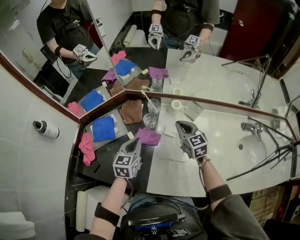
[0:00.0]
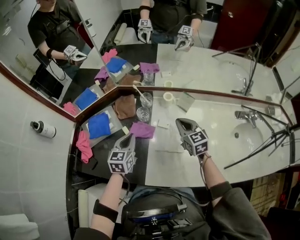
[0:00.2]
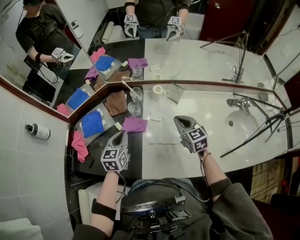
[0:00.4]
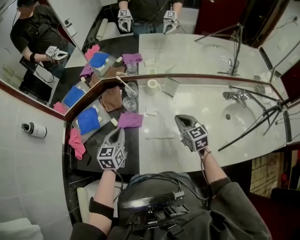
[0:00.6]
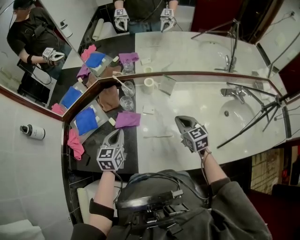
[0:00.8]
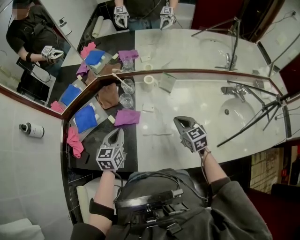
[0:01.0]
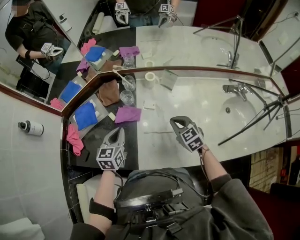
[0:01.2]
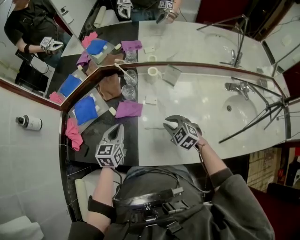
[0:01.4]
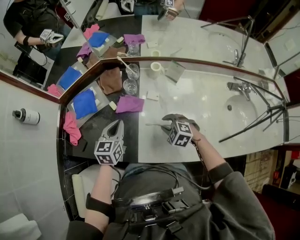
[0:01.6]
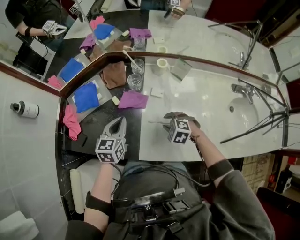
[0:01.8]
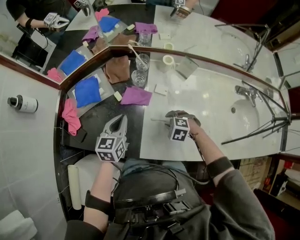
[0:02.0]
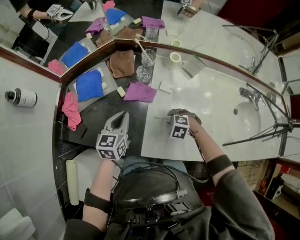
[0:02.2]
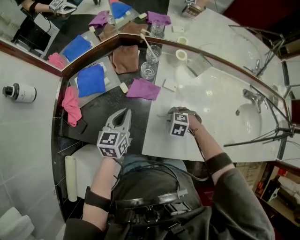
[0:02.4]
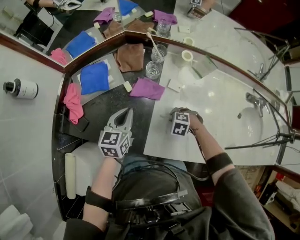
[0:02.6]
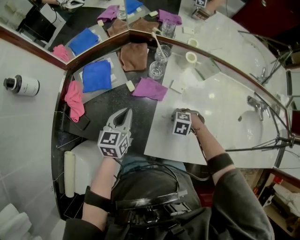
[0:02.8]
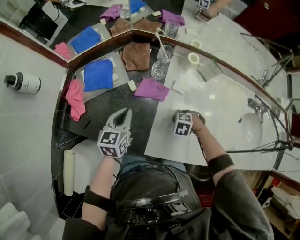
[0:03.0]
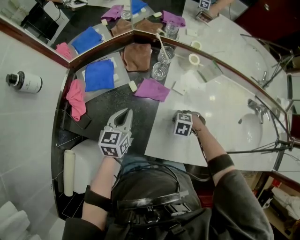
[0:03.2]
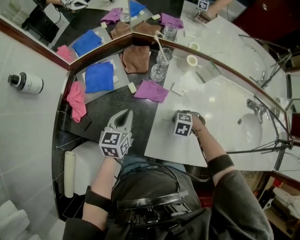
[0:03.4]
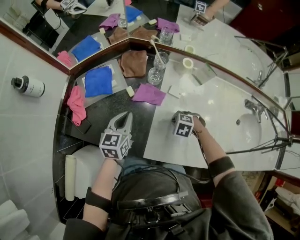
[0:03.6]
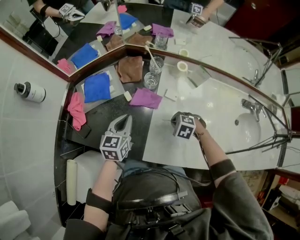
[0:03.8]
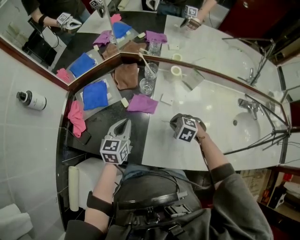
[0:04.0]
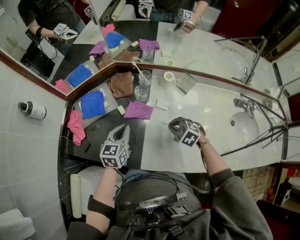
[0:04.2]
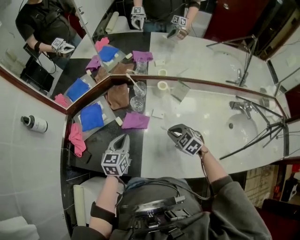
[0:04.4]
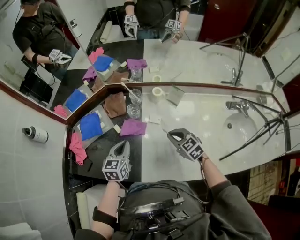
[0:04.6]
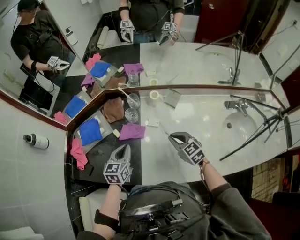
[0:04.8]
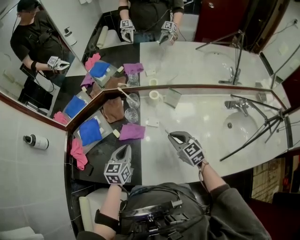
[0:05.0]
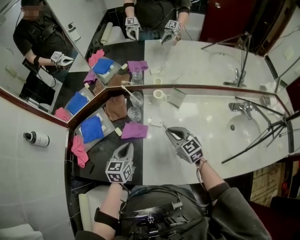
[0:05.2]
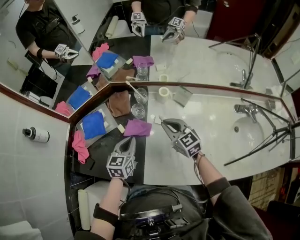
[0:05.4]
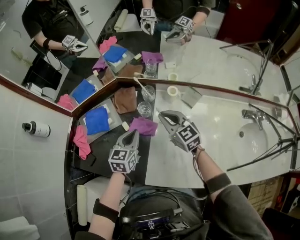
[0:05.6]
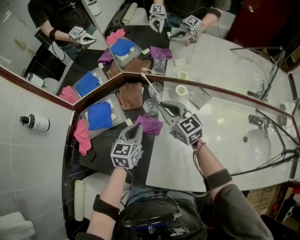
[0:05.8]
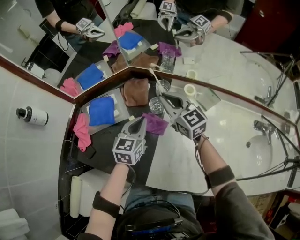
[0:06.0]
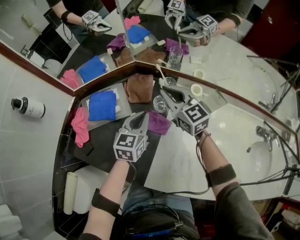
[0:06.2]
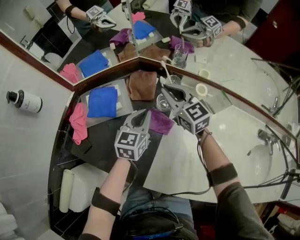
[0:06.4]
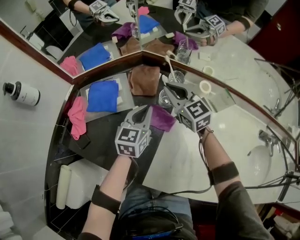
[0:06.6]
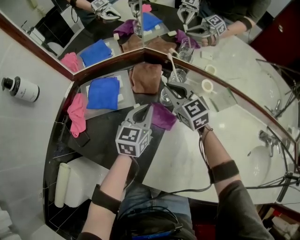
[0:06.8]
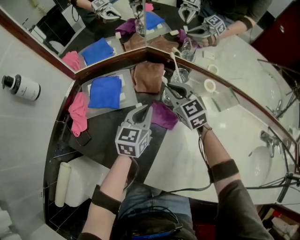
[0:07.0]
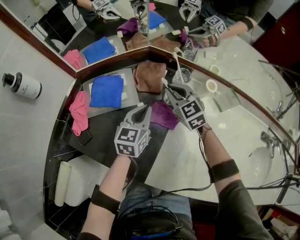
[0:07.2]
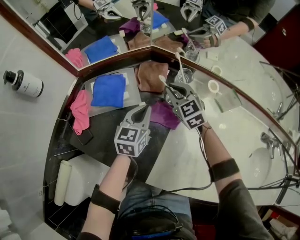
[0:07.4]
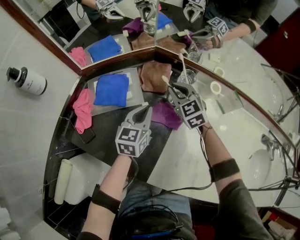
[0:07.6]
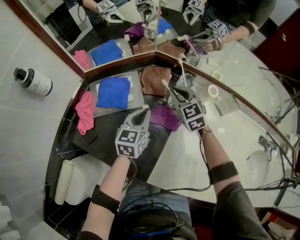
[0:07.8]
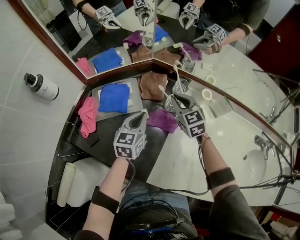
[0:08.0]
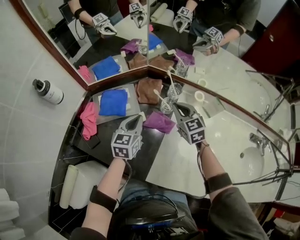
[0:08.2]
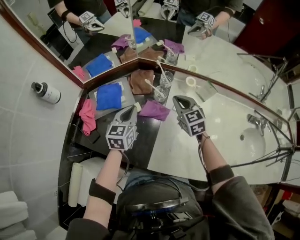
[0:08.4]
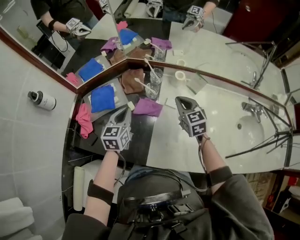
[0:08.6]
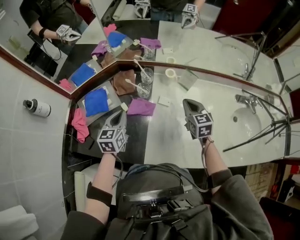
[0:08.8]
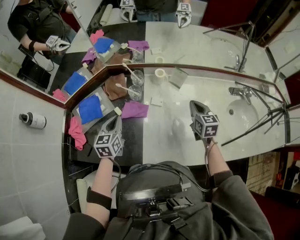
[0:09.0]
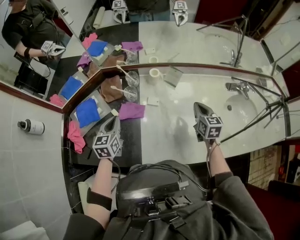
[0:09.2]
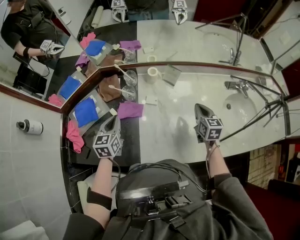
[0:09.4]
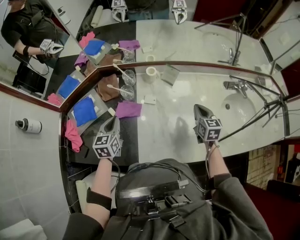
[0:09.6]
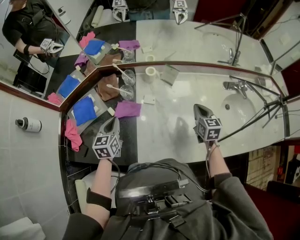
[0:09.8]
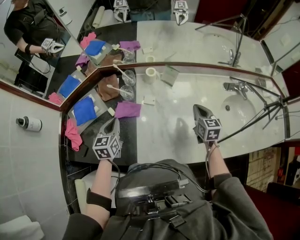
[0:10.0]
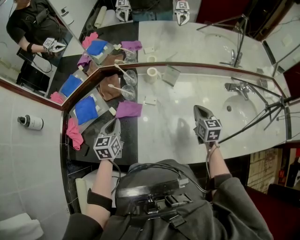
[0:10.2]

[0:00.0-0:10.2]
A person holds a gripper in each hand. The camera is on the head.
0:00.0 to 0:01.4: The right gripper moves backward and downward, some 20 cm, and swivels about 30 degrees, while the left gripper goes roughly 5 cm backward.
0:01.4 to 0:03.0: The right gripper shifts about 15 cm downward, and tilts its fingers some 30 degrees downward. Meanwhile the left gripper moves about 10 cm.
0:03.0 to 0:04.4: The left gripper shifts by about 10 cm, while the right gripper is displaced upward by roughly 15 cm, and tilts its fingers roughly 30 degrees upward.
0:04.4 to 0:05.8: The left gripper heads forward, covering some 10 cm. The right gripper moves forward and upward, about 20 cm, and angles its fingers upward, by about 30 degrees.
0:05.8 to 0:07.2: The left gripper moves downward, roughly 5 cm; the right gripper is displaced downward, to the left and forward by some 15 cm, and swivels about 20 degrees.
0:07.2 to 0:08.8: The right gripper shifts about 30 cm to the right, backward and upward, and swivels about 40 degrees. The left gripper shifts roughly 10 cm upward and backward.
0:08.8 to 0:10.2: The left gripper ends up roughly 5 cm from where it was. Meanwhile the right gripper goes about 15 cm to the right.

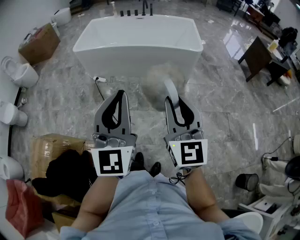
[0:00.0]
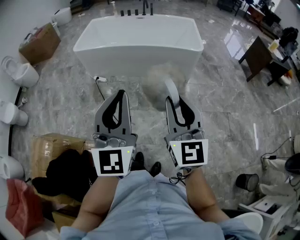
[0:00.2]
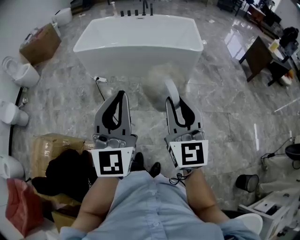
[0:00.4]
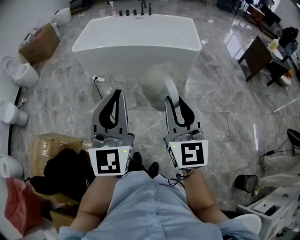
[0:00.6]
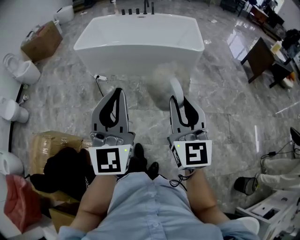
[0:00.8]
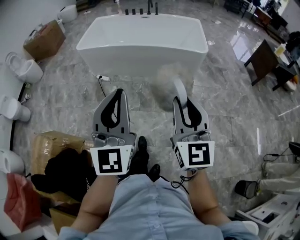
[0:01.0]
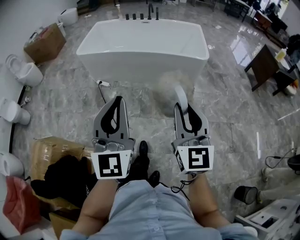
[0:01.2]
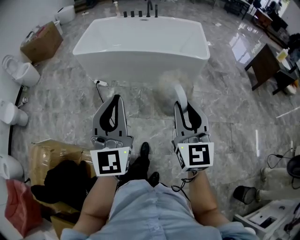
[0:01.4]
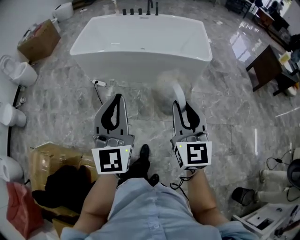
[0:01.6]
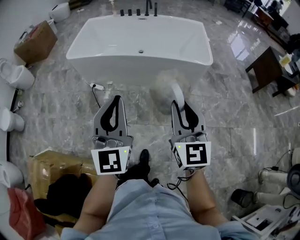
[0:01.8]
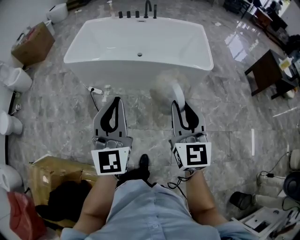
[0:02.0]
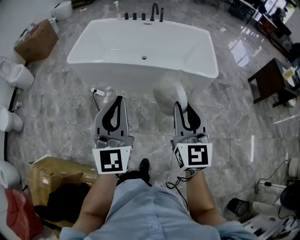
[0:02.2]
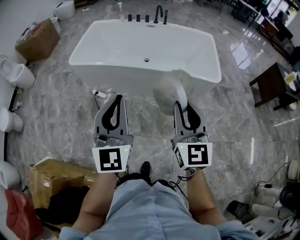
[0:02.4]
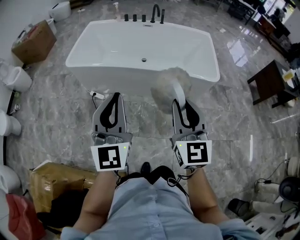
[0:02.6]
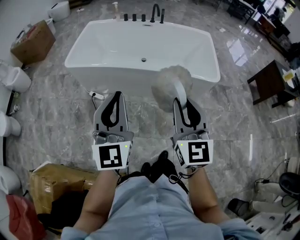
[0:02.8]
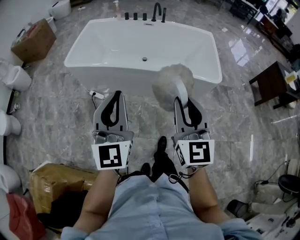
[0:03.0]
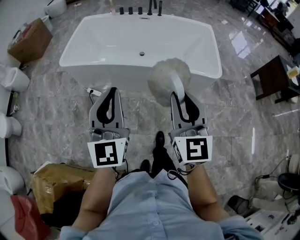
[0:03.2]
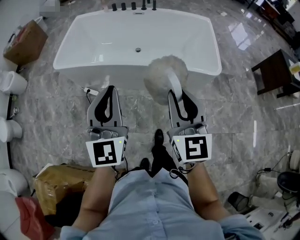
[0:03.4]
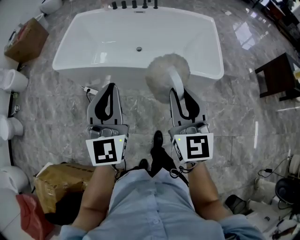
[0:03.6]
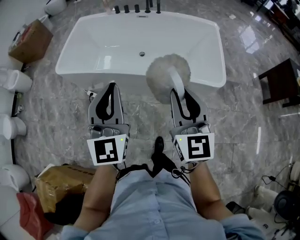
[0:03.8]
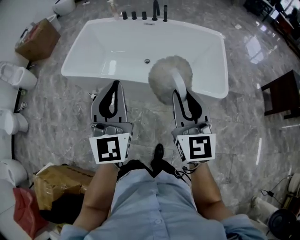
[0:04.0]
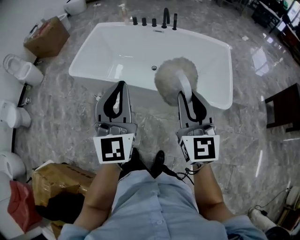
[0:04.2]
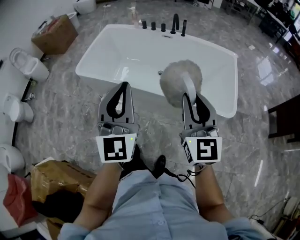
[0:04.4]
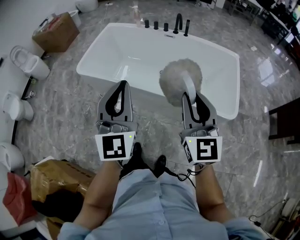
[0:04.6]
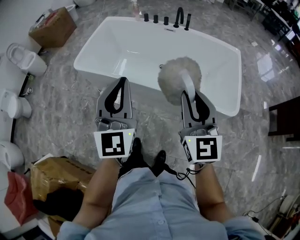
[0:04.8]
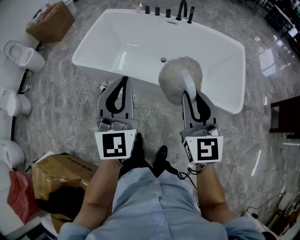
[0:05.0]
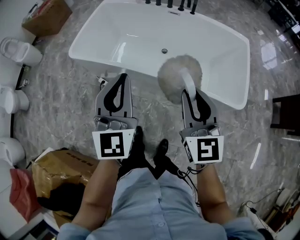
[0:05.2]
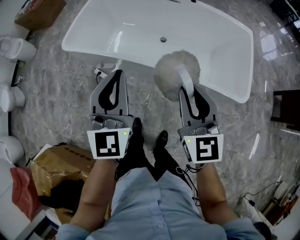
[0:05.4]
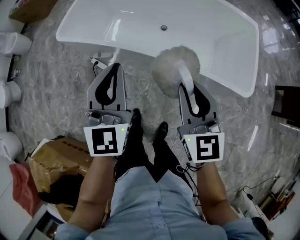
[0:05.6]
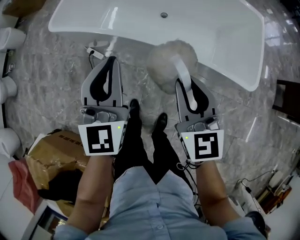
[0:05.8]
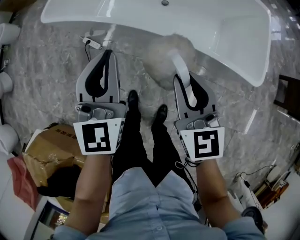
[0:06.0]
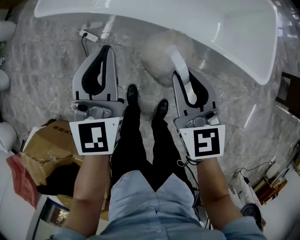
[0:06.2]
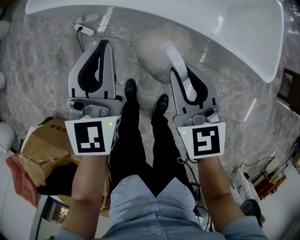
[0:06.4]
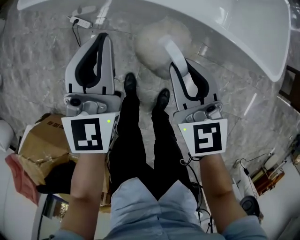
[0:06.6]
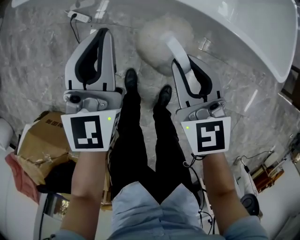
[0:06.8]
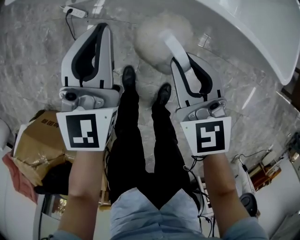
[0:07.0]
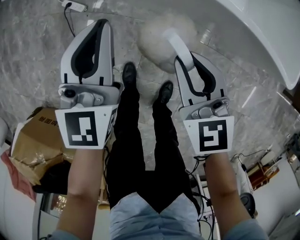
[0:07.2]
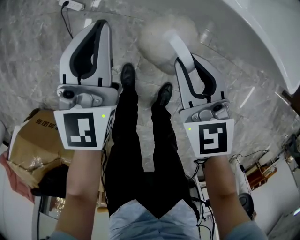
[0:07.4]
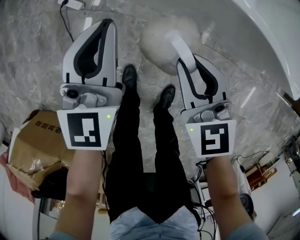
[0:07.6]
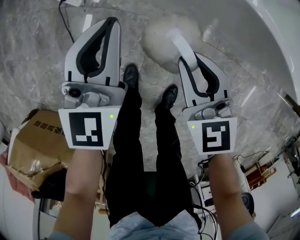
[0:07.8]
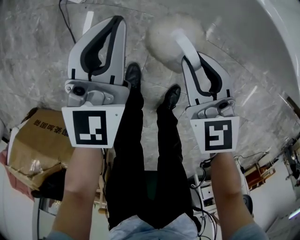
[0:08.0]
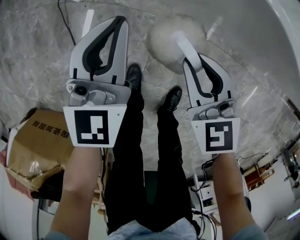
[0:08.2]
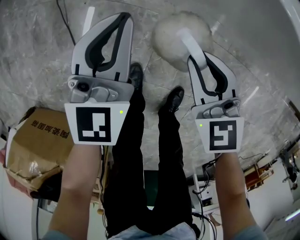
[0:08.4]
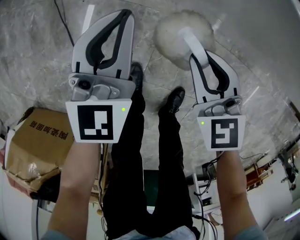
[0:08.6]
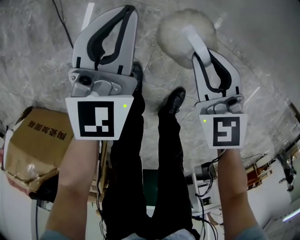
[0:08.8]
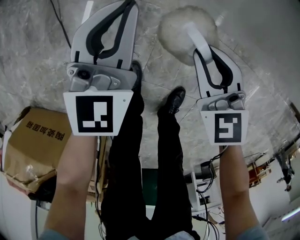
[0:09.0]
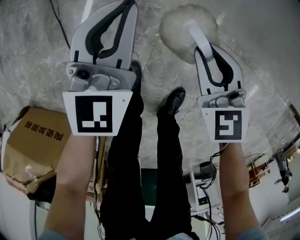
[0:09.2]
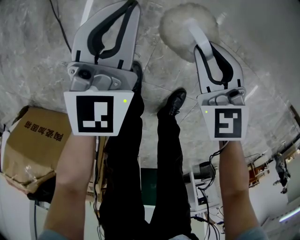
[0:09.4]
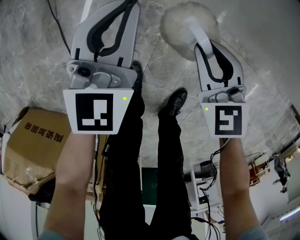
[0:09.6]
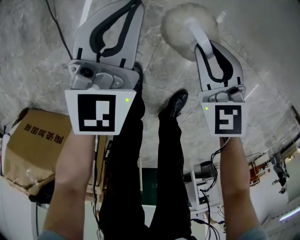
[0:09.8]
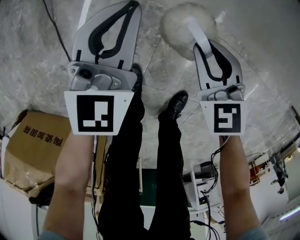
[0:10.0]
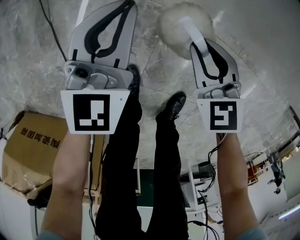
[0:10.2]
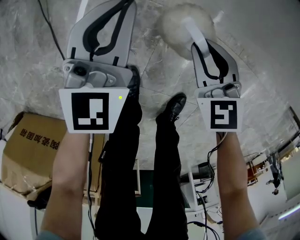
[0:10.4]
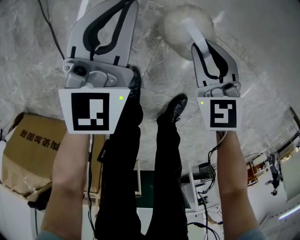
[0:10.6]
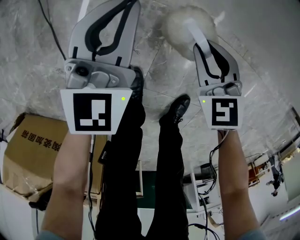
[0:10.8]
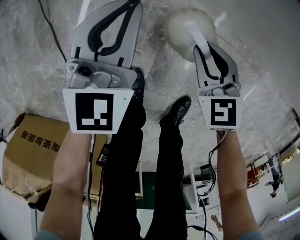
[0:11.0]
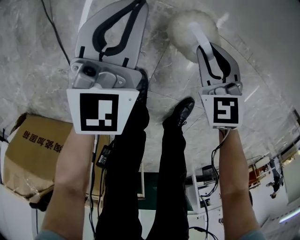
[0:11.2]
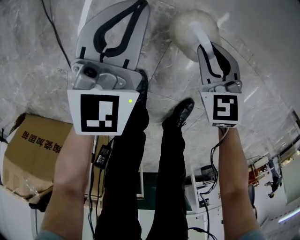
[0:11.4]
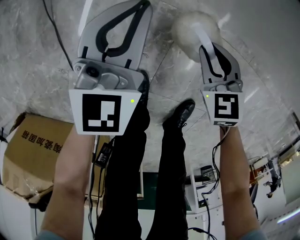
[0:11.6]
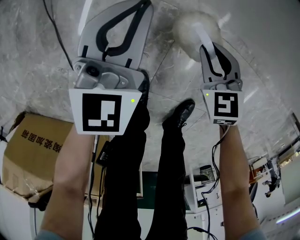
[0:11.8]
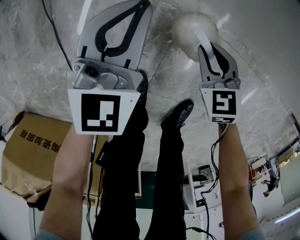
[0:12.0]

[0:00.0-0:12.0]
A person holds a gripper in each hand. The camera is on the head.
0:00.0 to 0:01.6: Both grippers travel together forward, approximately 20 cm.
0:01.6 to 0:03.0: The grippers both shift forward by approximately 25 cm.
0:03.0 to 0:04.4: The two grippers go some 25 cm forward and to the right.
0:04.4 to 0:06.0: The left gripper is displaced downward and forward by roughly 30 cm. The right gripper goes some 30 cm downward and to the left, and rotates approximately 20 degrees.
0:06.0 to 0:07.6: The grippers both shift downward by about 30 cm.
0:07.6 to 0:09.0: The two grippers go some 20 cm downward.
0:09.0 to 0:10.4: The grippers both shift downward by approximately 10 cm.
0:10.4 to 0:12.0: The right gripper heads downward, covering approximately 10 cm.

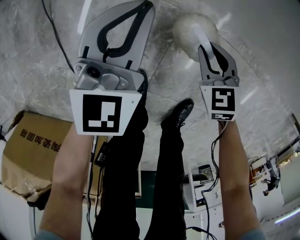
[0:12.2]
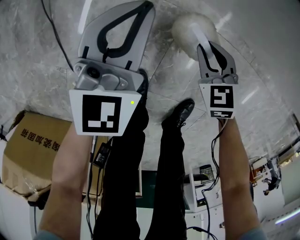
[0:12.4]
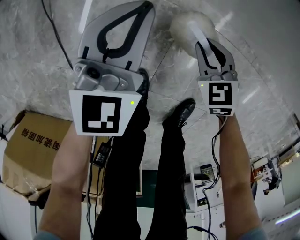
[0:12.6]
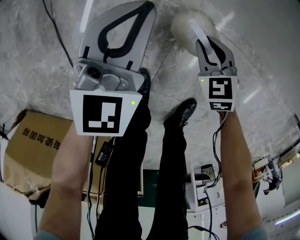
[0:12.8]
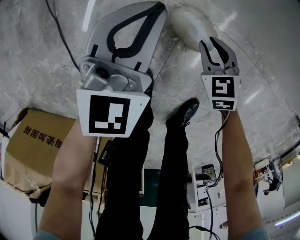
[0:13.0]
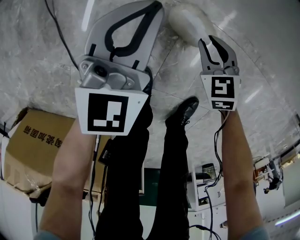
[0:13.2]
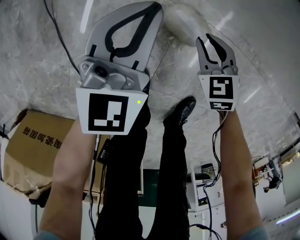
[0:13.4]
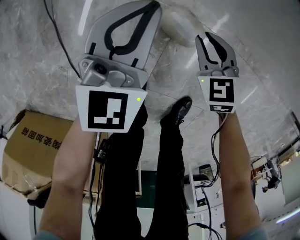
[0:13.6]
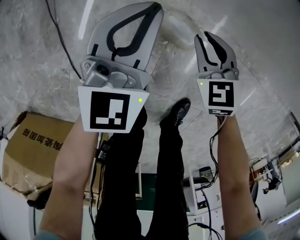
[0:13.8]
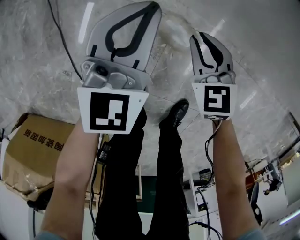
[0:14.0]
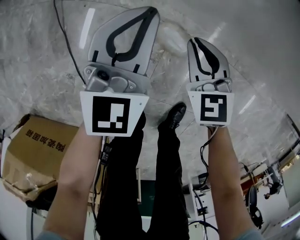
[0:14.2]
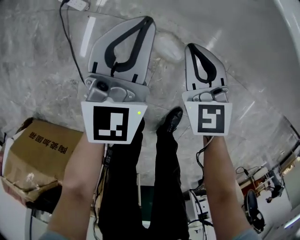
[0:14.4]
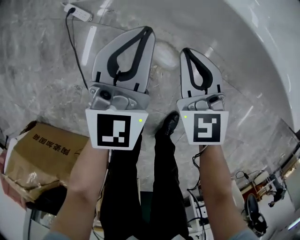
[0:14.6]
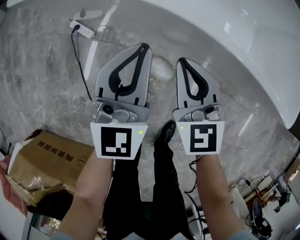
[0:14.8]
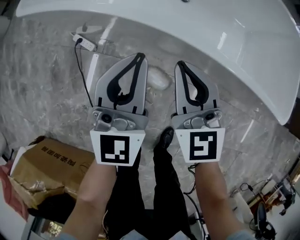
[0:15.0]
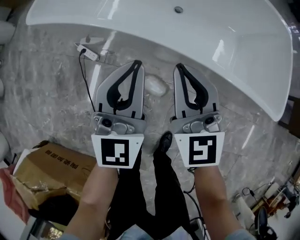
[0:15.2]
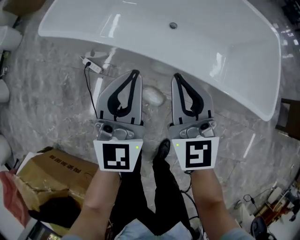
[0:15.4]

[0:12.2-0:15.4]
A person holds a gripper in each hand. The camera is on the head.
0:12.2 to 0:13.8: The right gripper shifts about 5 cm upward.
0:13.8 to 0:15.4: The grippers both shift upward by about 50 cm. The left gripper swivels approximately 20 degrees. The right gripper angles its fingers upward, by roughly 40 degrees.
